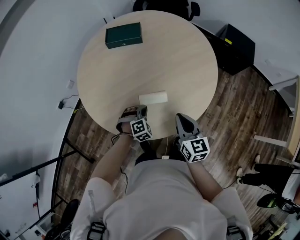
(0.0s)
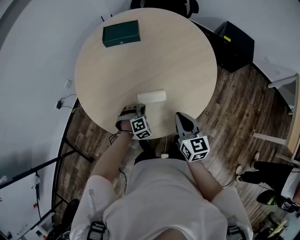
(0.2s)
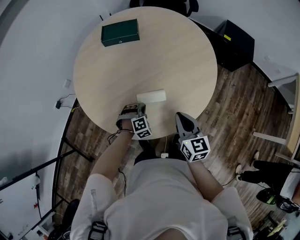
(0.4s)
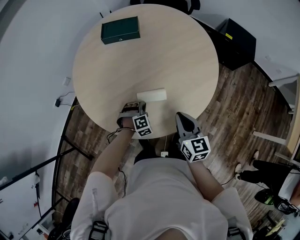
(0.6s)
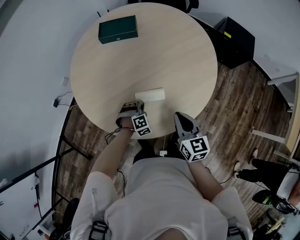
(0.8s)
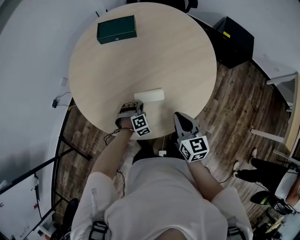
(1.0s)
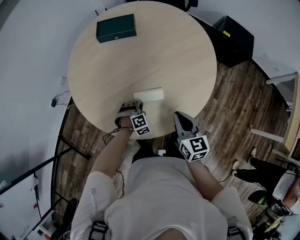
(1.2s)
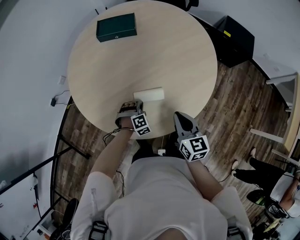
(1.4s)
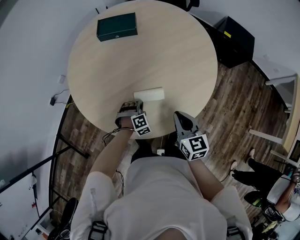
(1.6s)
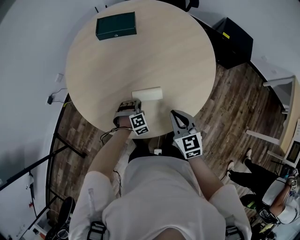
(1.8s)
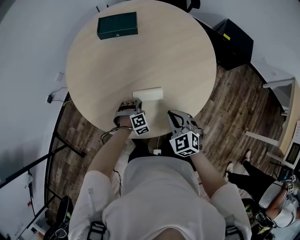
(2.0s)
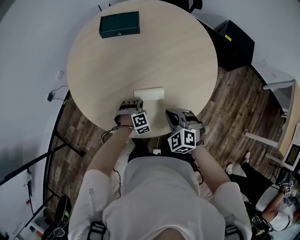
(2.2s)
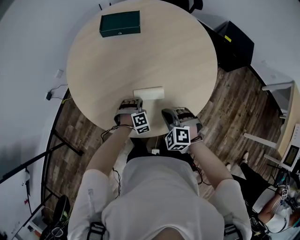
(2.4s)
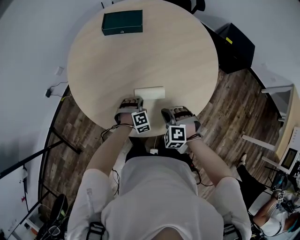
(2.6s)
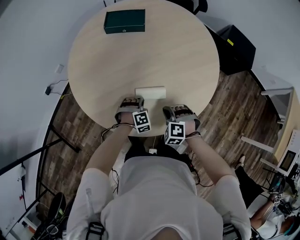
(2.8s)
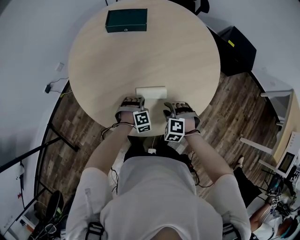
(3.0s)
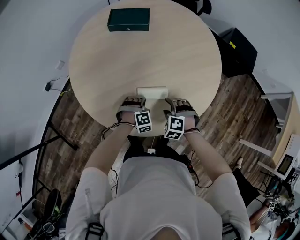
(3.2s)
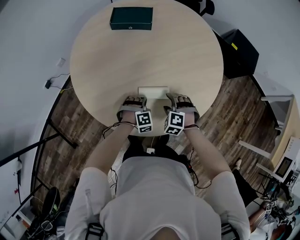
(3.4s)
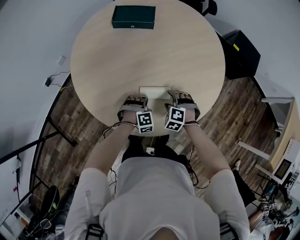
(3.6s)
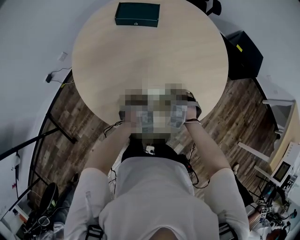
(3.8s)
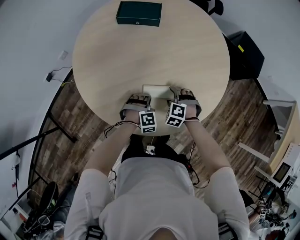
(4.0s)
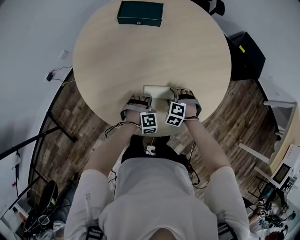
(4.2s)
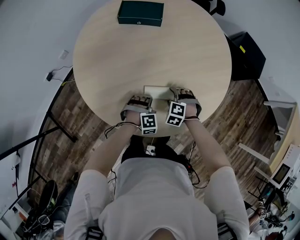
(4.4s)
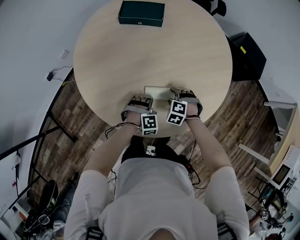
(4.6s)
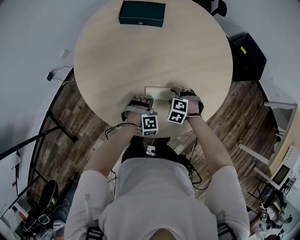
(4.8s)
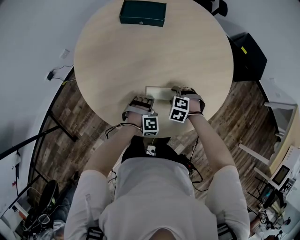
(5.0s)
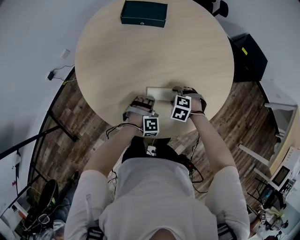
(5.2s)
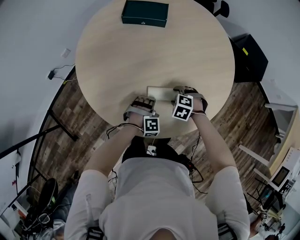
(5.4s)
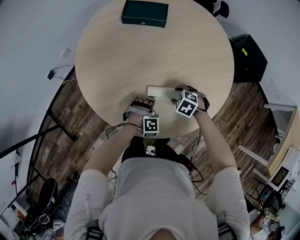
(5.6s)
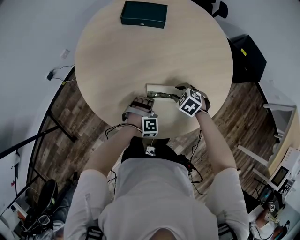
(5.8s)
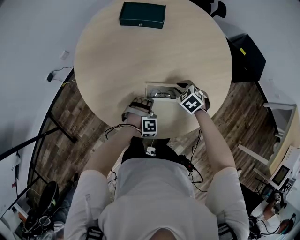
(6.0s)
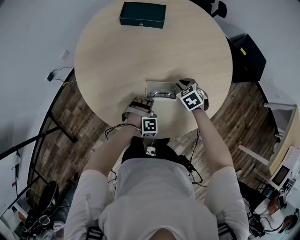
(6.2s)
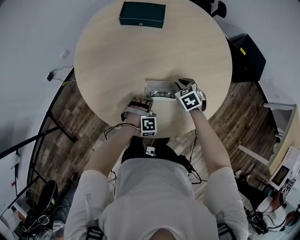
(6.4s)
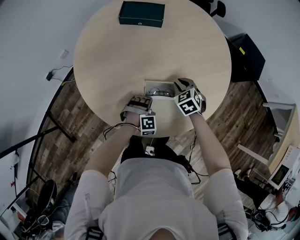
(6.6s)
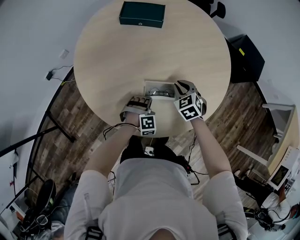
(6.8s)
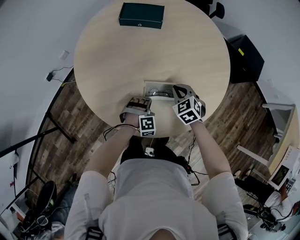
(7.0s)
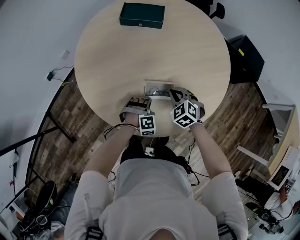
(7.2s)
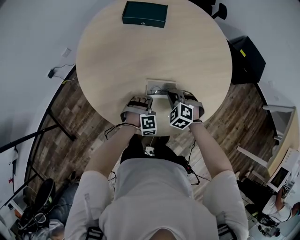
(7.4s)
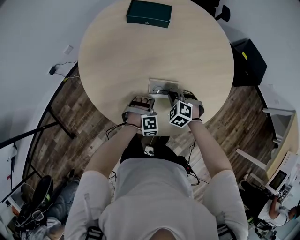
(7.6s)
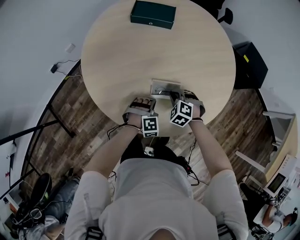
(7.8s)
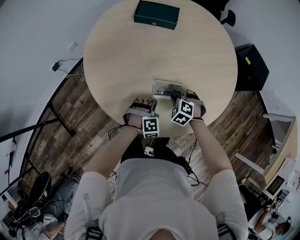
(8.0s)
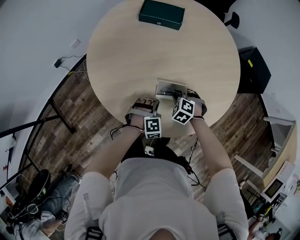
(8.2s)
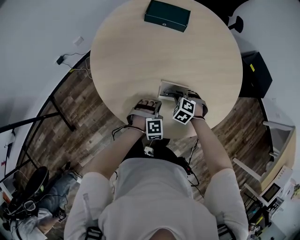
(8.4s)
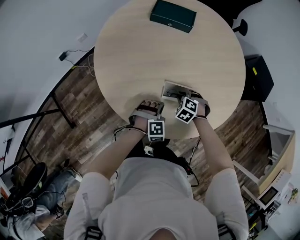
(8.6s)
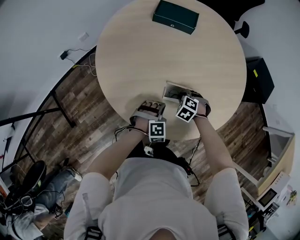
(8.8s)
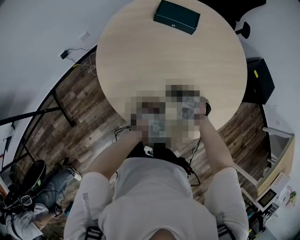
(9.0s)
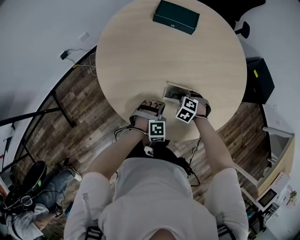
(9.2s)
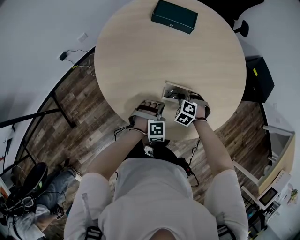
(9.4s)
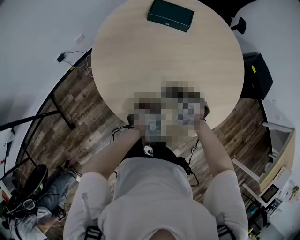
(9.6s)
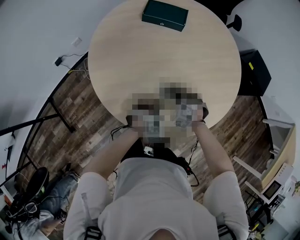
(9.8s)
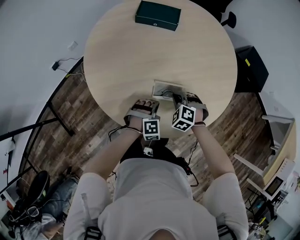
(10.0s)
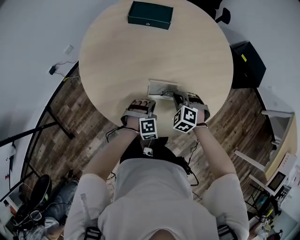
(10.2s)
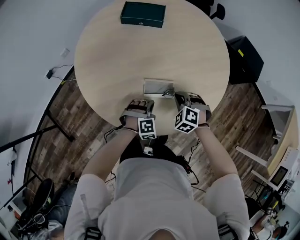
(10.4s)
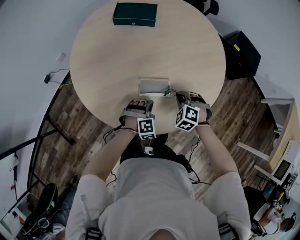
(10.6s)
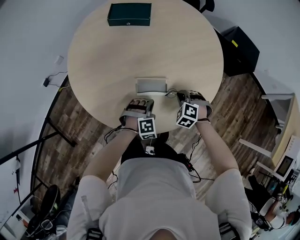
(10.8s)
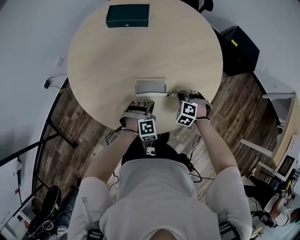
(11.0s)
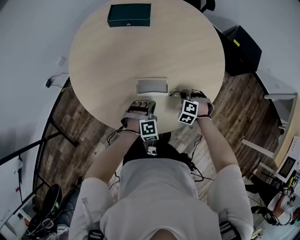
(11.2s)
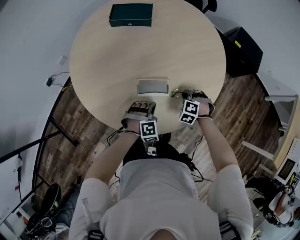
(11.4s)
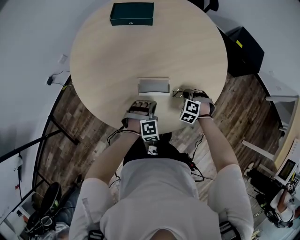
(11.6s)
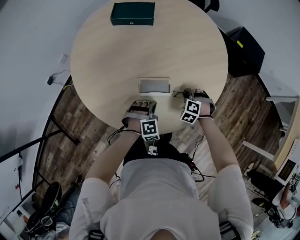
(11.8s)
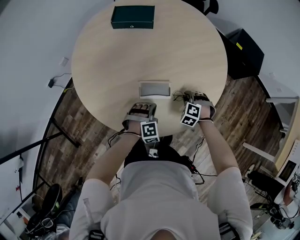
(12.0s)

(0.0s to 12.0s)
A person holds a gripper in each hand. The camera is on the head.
0.0s - 1.6s: The left gripper goes about 5 cm downward.
1.6s - 3.0s: The right gripper heads downward, covering some 15 cm, rotates around the line of its fingers by approximately 70 degrees, counterclockwise from behind, and opens up.
3.0s - 4.4s: The right gripper heads forward and downward, covering about 10 cm, and opens its fingers.
4.4s - 6.0s: The right gripper changes place by some 10 cm, changes its angle by roughly 30 degrees, and closes up.
6.0s - 7.6s: The right gripper travels to the left by approximately 5 cm, and turns by roughly 20 degrees.
7.6s - 9.0s: The right gripper shifts roughly 5 cm downward, and opens, then closes again.
9.0s - 10.4s: The right gripper goes about 10 cm upward.
10.4s - 12.0s: The right gripper goes approximately 10 cm to the right and downward.

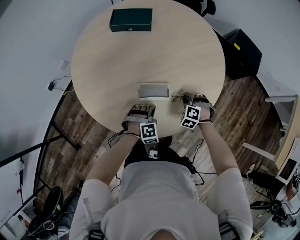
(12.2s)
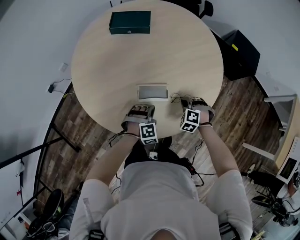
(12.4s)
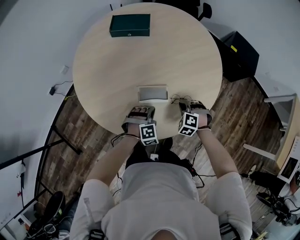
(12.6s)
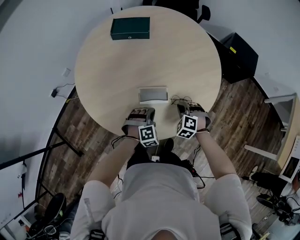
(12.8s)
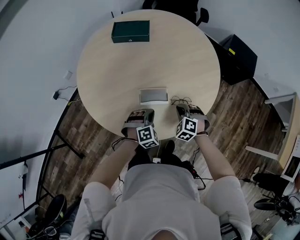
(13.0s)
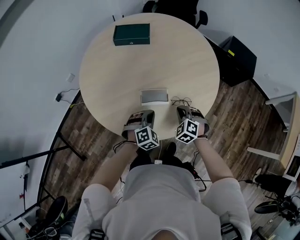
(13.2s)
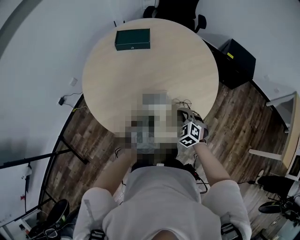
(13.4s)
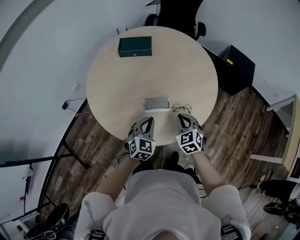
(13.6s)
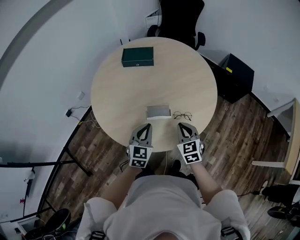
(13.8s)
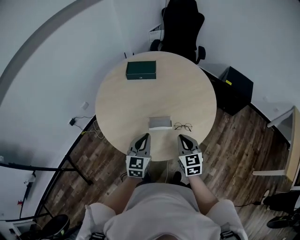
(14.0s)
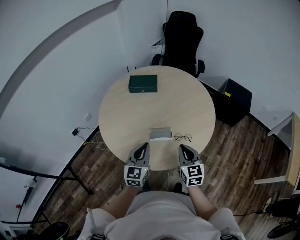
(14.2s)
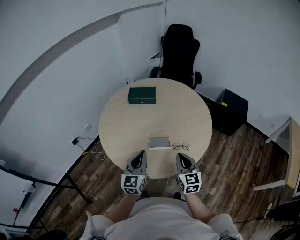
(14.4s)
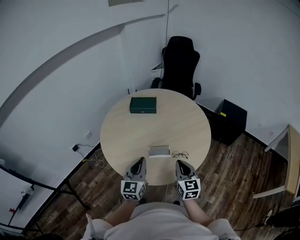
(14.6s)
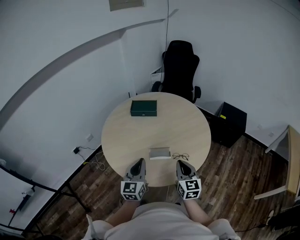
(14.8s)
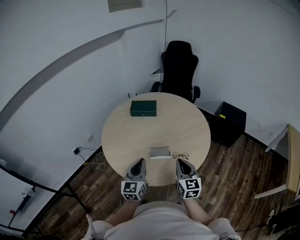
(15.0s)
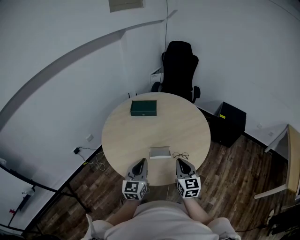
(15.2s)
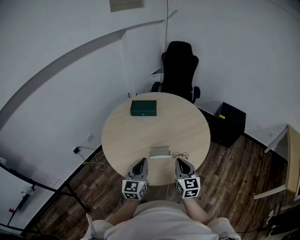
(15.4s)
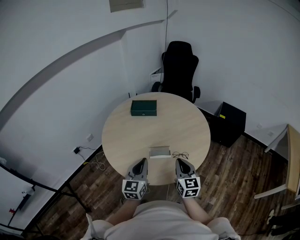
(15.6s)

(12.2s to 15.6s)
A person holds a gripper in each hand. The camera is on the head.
12.2s - 13.8s: The right gripper shifts approximately 25 cm upward and backward, and twists some 50 degrees clockwise, seen from behind; the left gripper heads upward, covering about 20 cm, and twists approximately 60 degrees counterclockwise, seen from behind.
13.8s - 15.6s: Both grippers travel together upward and backward, approximately 15 cm. The left gripper swivels approximately 20 degrees. Meanwhile the right gripper swivels some 30 degrees.

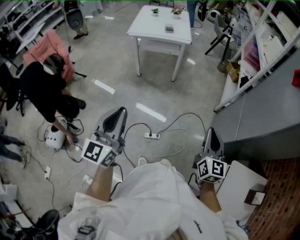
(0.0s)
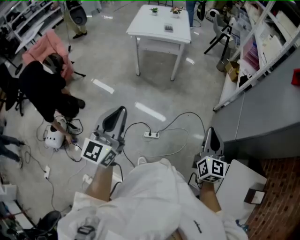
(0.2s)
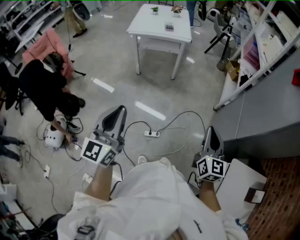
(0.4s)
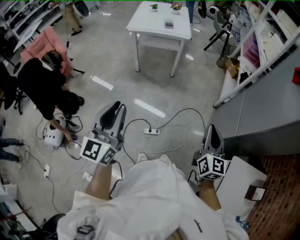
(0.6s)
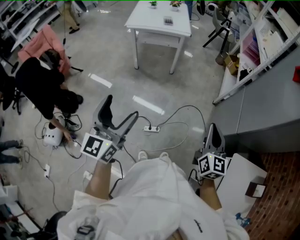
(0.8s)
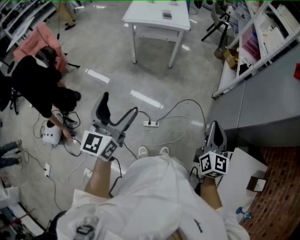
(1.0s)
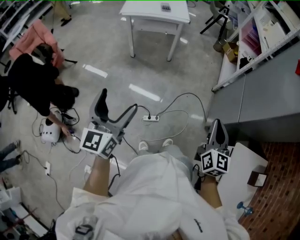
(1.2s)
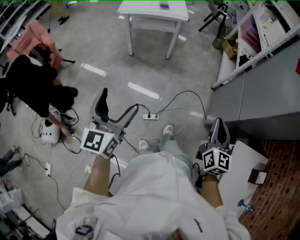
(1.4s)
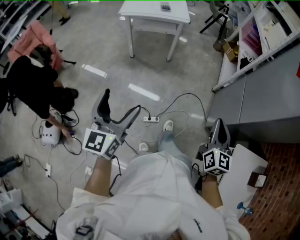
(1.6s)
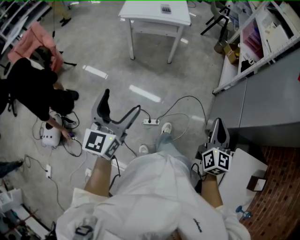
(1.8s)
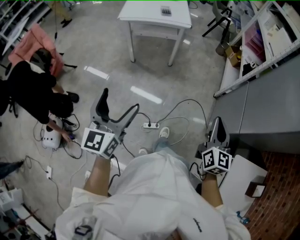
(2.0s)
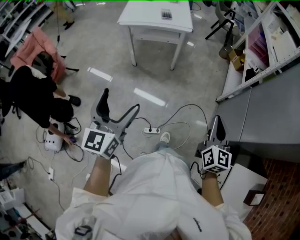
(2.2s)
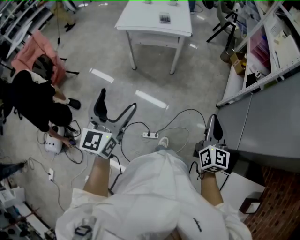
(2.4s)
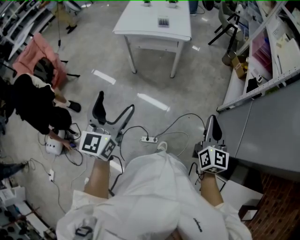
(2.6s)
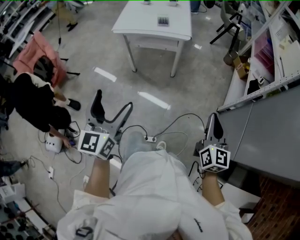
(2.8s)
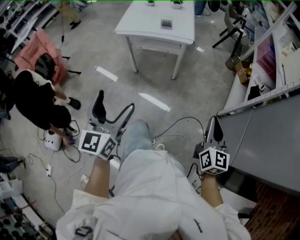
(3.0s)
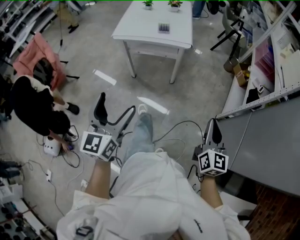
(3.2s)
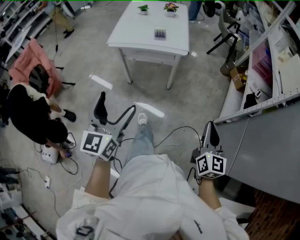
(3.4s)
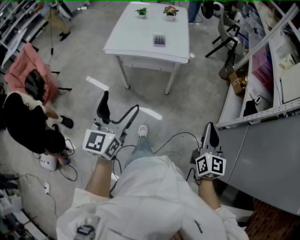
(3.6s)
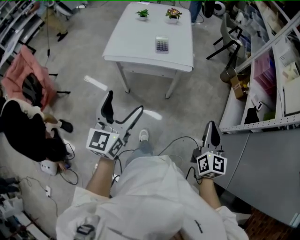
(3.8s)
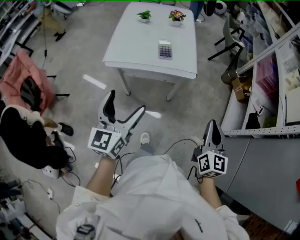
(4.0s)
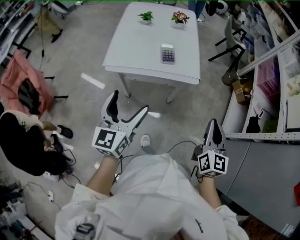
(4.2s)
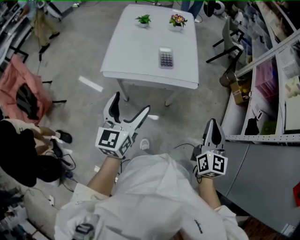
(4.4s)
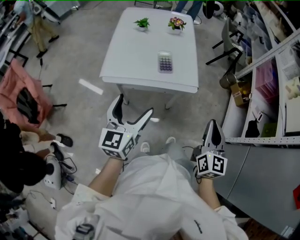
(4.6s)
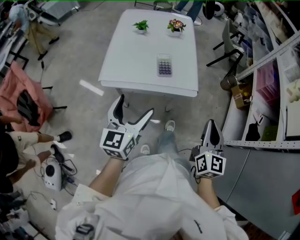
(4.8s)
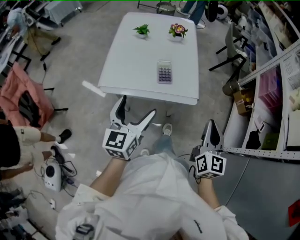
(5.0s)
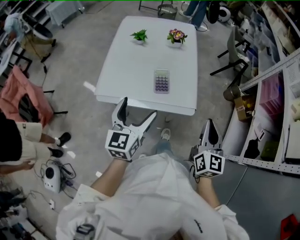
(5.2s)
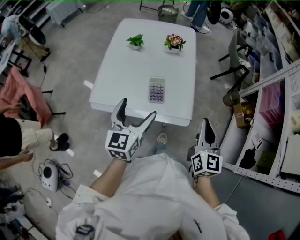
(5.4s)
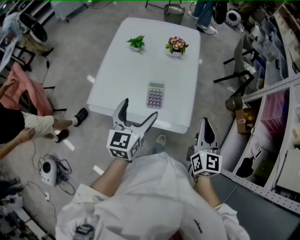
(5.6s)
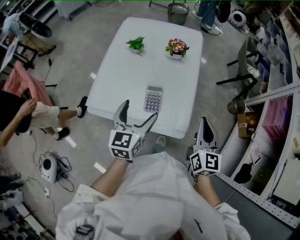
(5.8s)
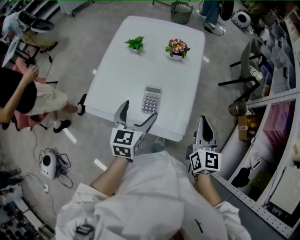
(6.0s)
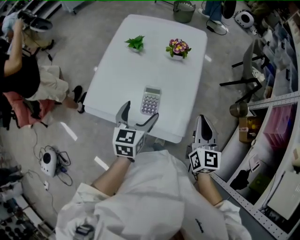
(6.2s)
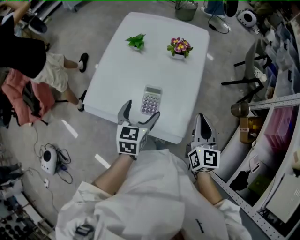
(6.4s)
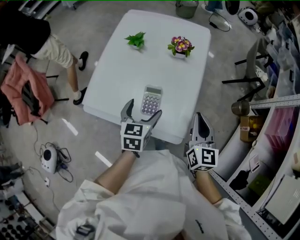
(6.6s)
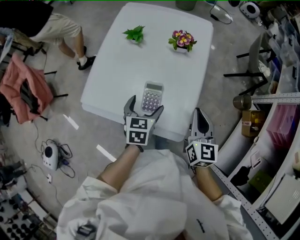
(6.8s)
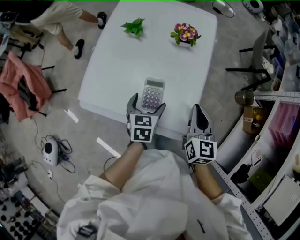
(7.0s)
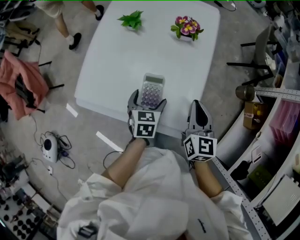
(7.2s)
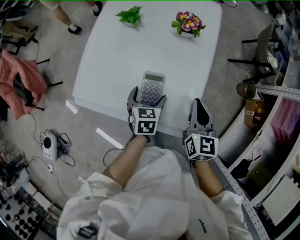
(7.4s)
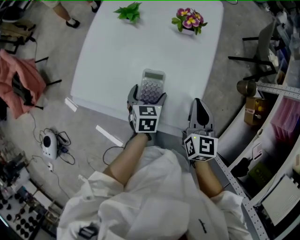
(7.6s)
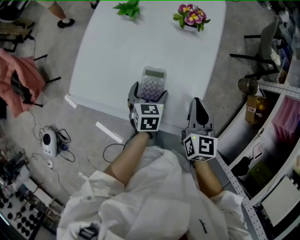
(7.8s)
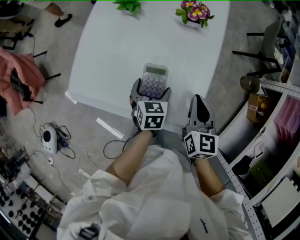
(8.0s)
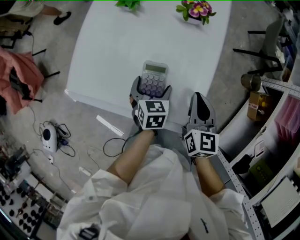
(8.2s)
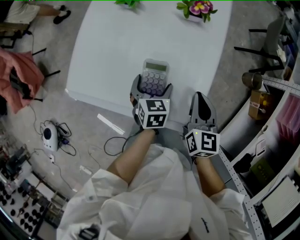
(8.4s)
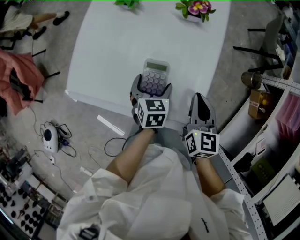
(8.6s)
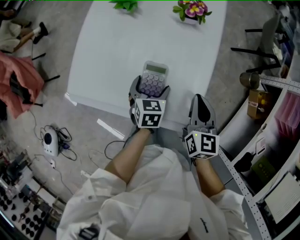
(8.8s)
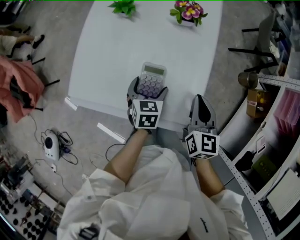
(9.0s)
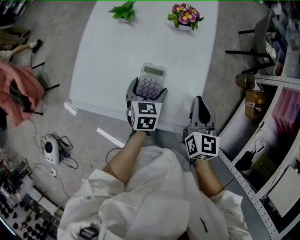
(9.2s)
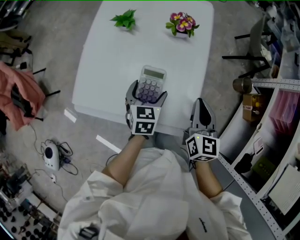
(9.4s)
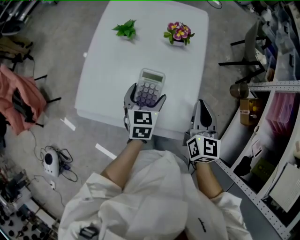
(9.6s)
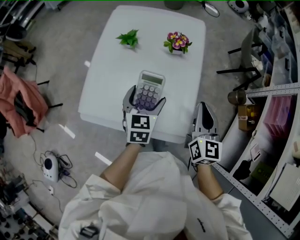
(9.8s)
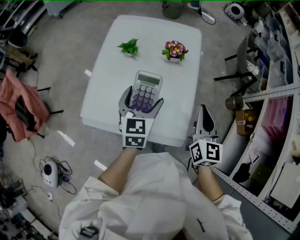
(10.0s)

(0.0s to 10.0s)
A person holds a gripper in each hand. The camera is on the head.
0.0s - 1.4s: The left gripper shifts about 5 cm to the left and downward, and opens.
1.4s - 2.8s: Both grippers move forward, some 30 cm.
2.8s - 4.2s: The left gripper heads forward, covering some 35 cm. Meanwhile the right gripper heads forward and to the left, covering approximately 35 cm.
4.2s - 5.8s: The two grippers go some 35 cm forward.
5.8s - 7.2s: The right gripper heads forward and downward, covering about 15 cm; the left gripper travels downward and forward by roughly 20 cm, and turns by about 30 degrees.
7.2s - 8.6s: The right gripper travels downward by some 5 cm; the left gripper ends up roughly 5 cm from where it was.
8.6s - 10.0s: The grippers both shift upward by roughly 20 cm. The left gripper rotates about 30 degrees.
